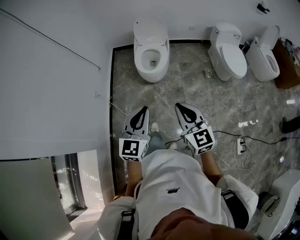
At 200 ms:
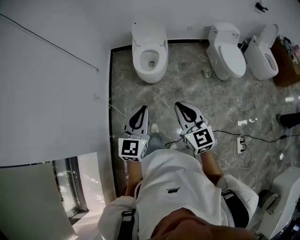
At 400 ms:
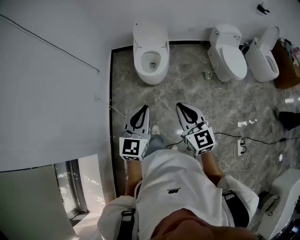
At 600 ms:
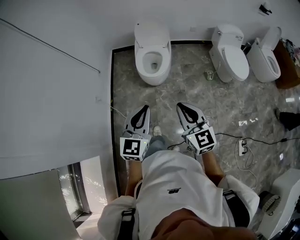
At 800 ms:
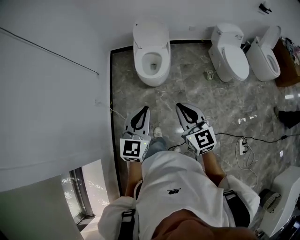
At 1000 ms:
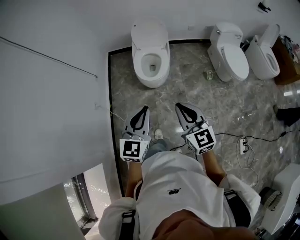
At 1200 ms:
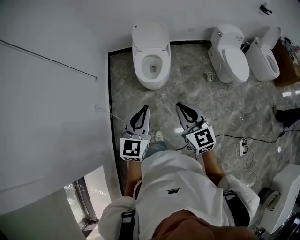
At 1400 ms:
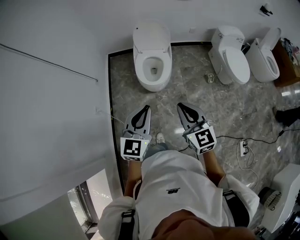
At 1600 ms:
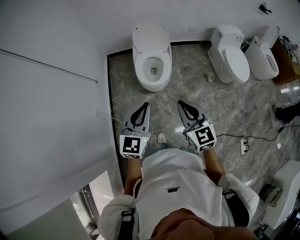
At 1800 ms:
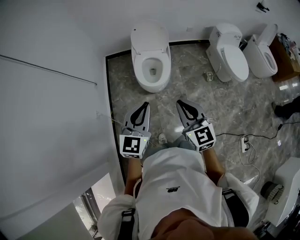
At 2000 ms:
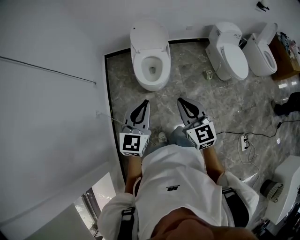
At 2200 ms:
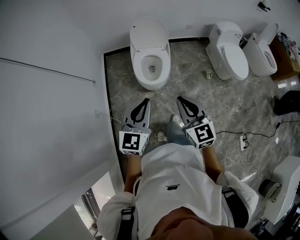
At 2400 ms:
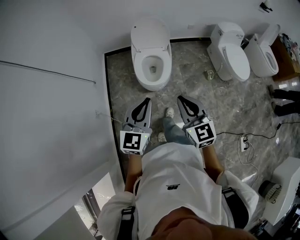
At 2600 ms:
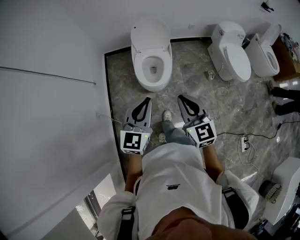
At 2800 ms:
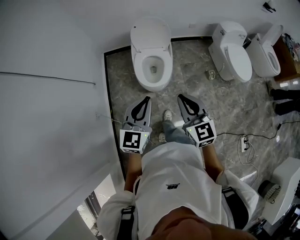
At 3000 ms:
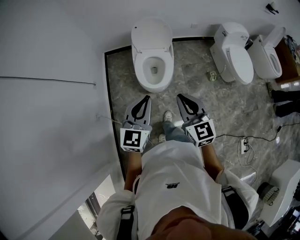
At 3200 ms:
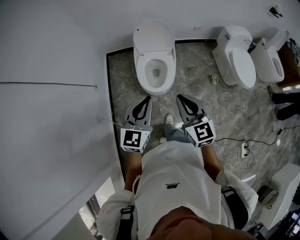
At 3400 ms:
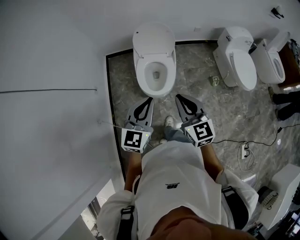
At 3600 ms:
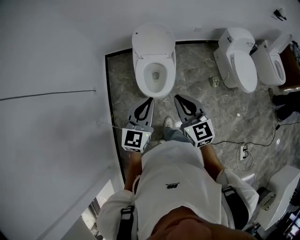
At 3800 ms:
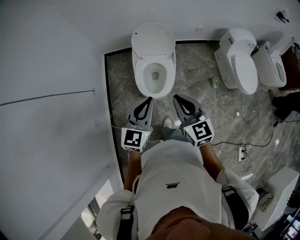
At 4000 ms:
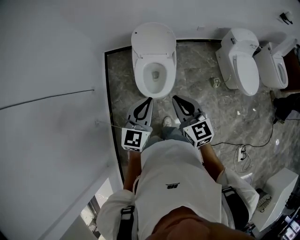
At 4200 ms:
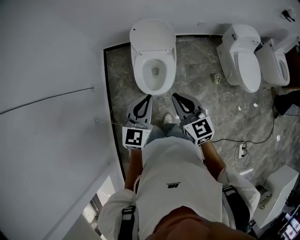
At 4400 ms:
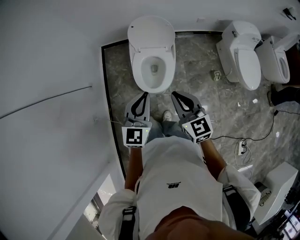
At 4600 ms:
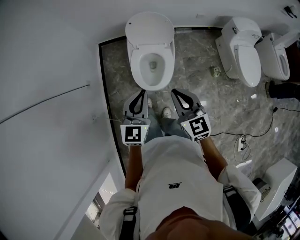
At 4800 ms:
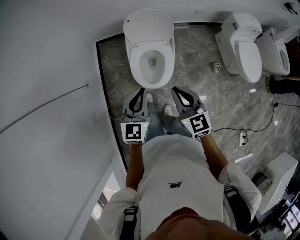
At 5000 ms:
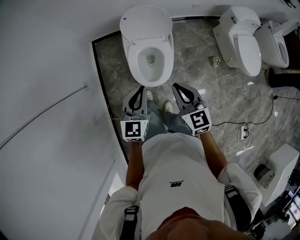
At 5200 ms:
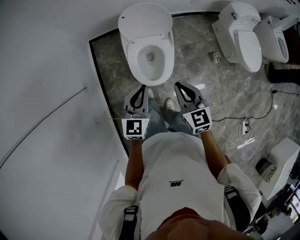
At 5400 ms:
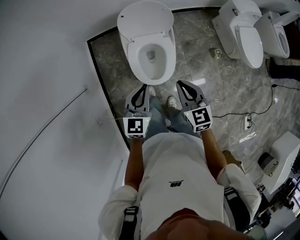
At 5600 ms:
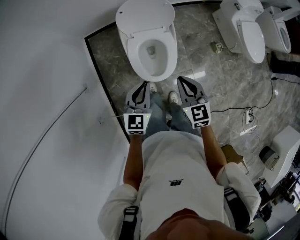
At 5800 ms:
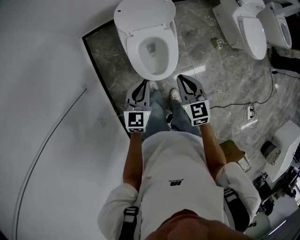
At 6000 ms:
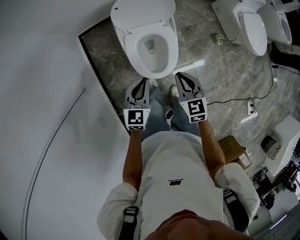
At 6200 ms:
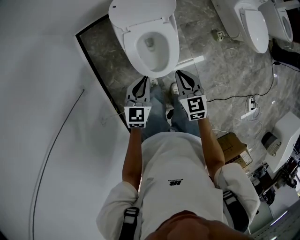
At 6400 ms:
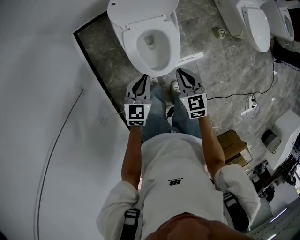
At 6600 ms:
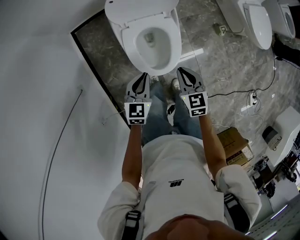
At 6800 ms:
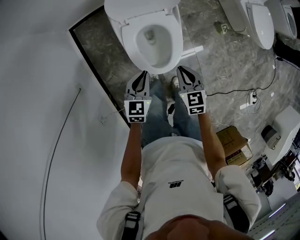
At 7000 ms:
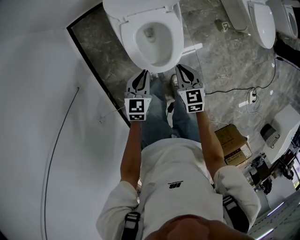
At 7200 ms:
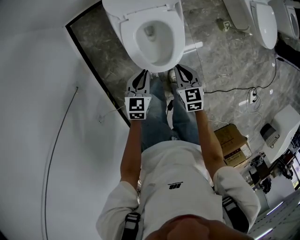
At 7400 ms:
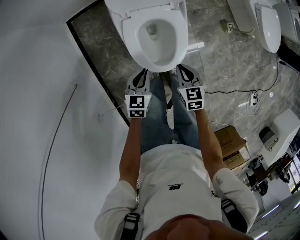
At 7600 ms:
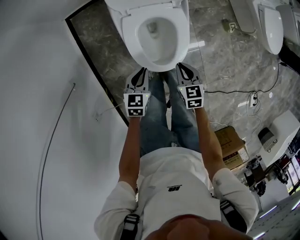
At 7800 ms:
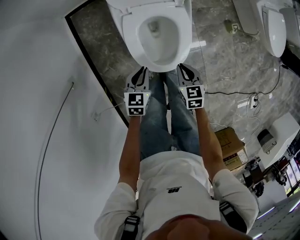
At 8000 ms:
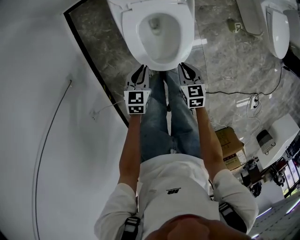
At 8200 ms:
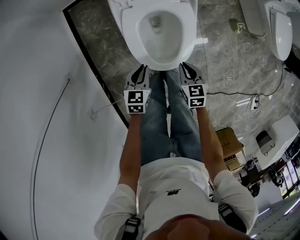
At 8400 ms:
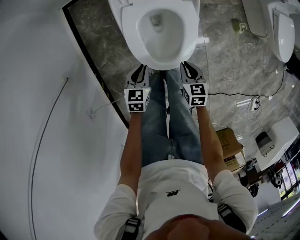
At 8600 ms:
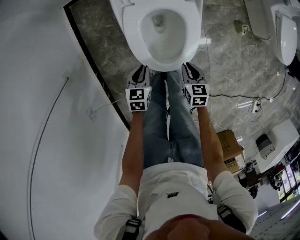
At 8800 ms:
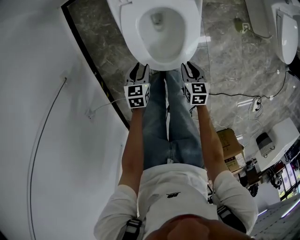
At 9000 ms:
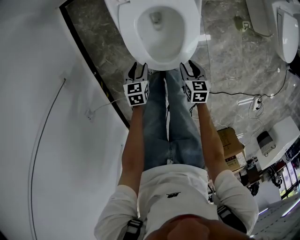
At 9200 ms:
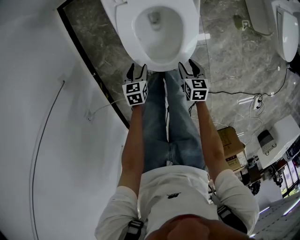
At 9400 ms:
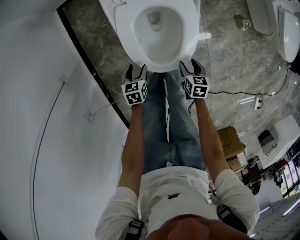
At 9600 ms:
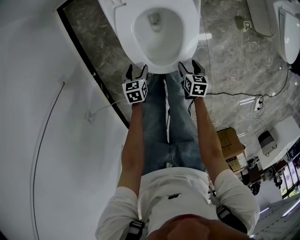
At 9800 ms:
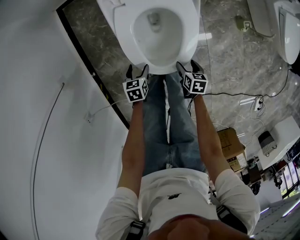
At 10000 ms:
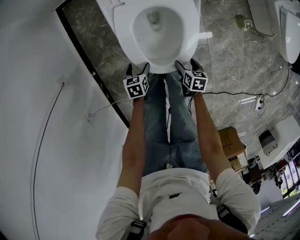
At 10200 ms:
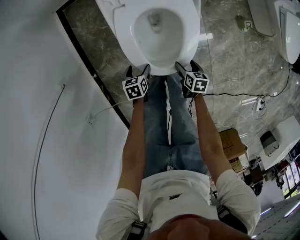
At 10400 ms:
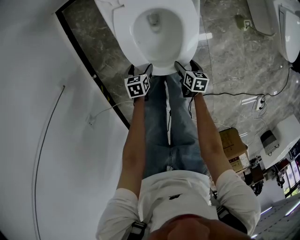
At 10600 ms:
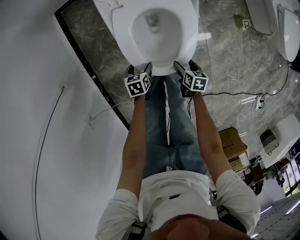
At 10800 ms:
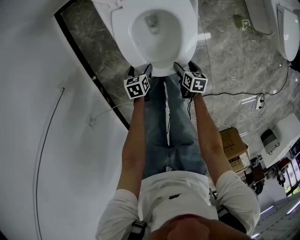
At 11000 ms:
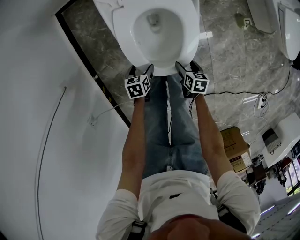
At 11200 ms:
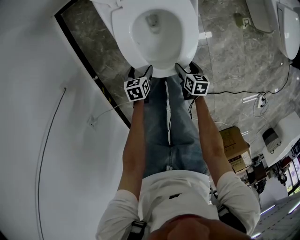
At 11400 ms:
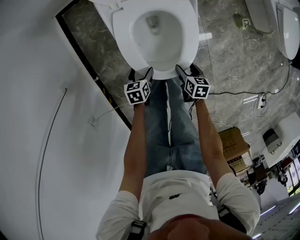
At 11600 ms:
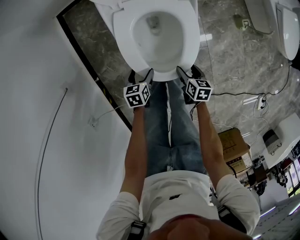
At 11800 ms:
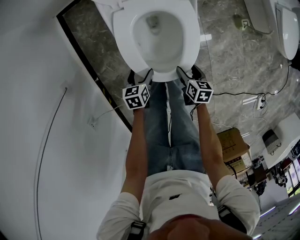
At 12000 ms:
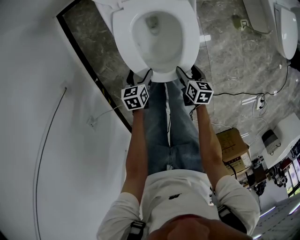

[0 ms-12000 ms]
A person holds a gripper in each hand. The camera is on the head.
0 ms to 1600 ms: The two grippers go some 20 cm forward and to the left.
1600 ms to 3000 ms: The grippers both shift forward by approximately 10 cm.
3000 ms to 4400 ms: Both grippers move forward, about 15 cm.
4400 ms to 6000 ms: Both grippers move downward and forward, some 20 cm. The left gripper turns by roughly 20 degrees, while the right gripper rotates roughly 20 degrees.
6000 ms to 7600 ms: The grippers both shift downward by approximately 20 cm.
7600 ms to 9000 ms: The two grippers go some 15 cm downward. The right gripper opens up; the left gripper opens its fingers.
9000 ms to 10400 ms: Both grippers travel together downward, approximately 10 cm. The left gripper opens; the right gripper turns by approximately 20 degrees, and opens up.
10400 ms to 12000 ms: The two grippers go about 10 cm upward.

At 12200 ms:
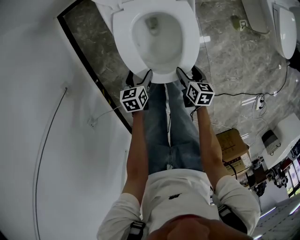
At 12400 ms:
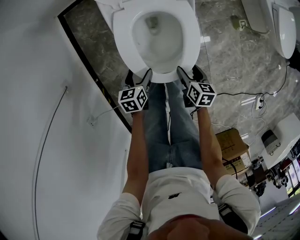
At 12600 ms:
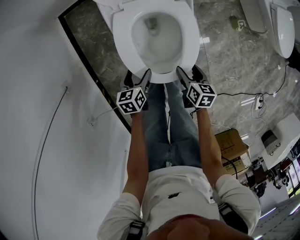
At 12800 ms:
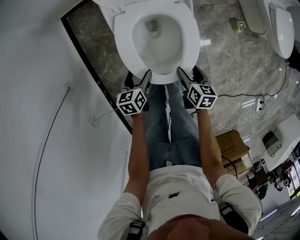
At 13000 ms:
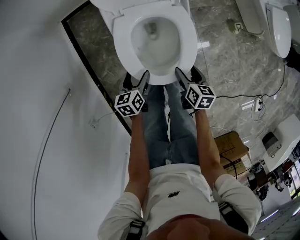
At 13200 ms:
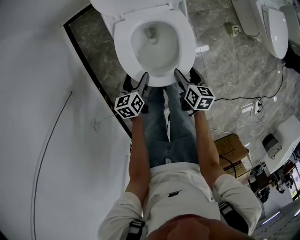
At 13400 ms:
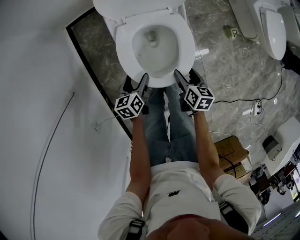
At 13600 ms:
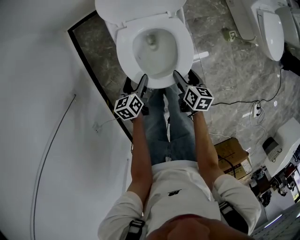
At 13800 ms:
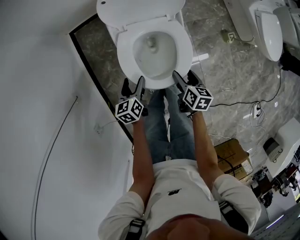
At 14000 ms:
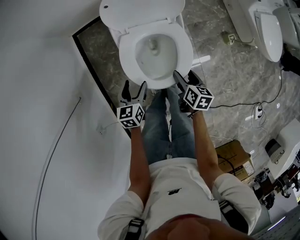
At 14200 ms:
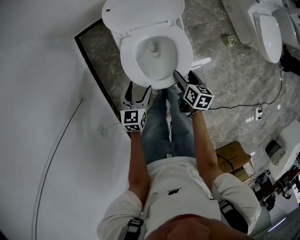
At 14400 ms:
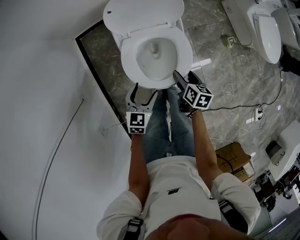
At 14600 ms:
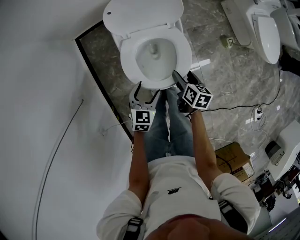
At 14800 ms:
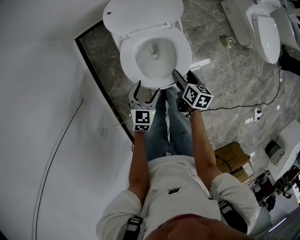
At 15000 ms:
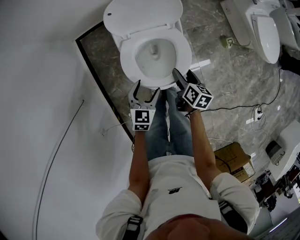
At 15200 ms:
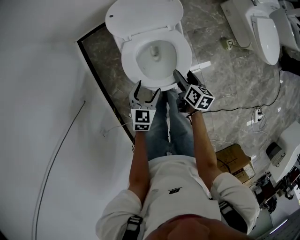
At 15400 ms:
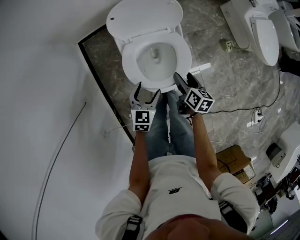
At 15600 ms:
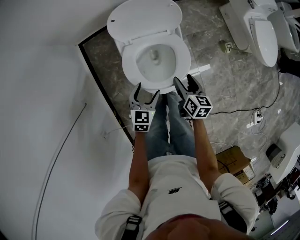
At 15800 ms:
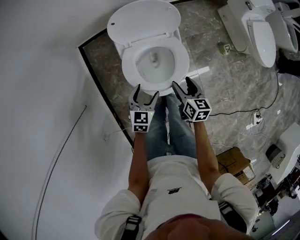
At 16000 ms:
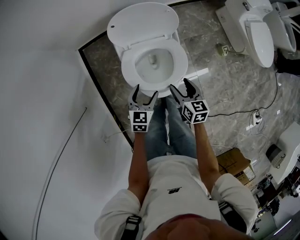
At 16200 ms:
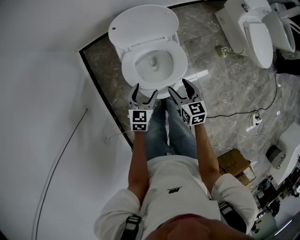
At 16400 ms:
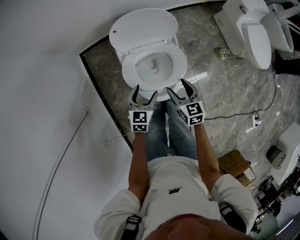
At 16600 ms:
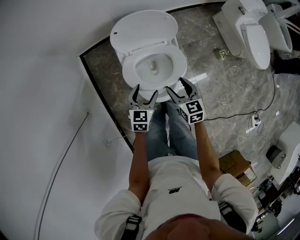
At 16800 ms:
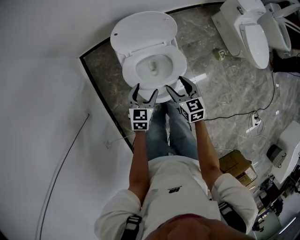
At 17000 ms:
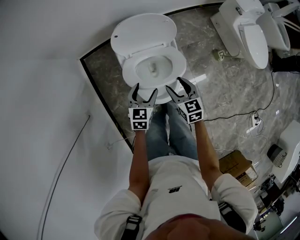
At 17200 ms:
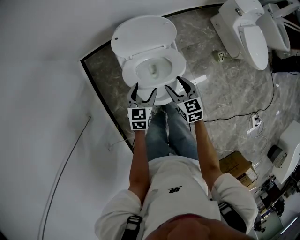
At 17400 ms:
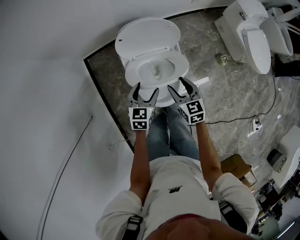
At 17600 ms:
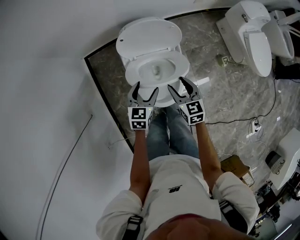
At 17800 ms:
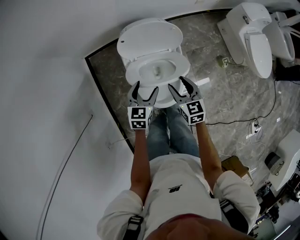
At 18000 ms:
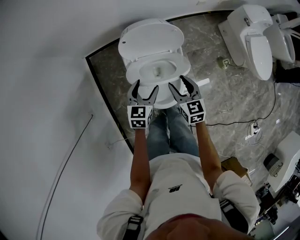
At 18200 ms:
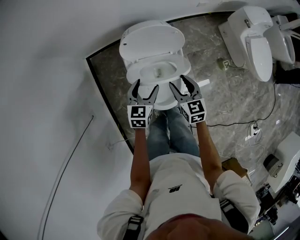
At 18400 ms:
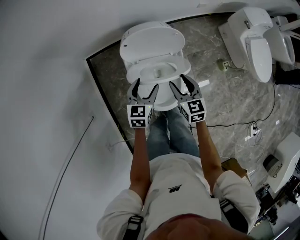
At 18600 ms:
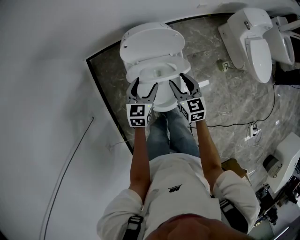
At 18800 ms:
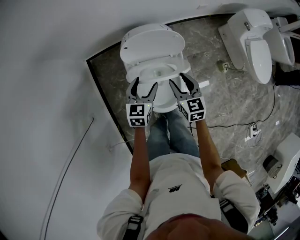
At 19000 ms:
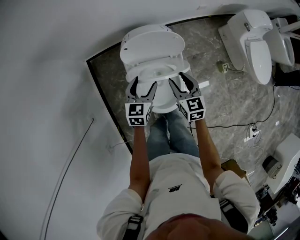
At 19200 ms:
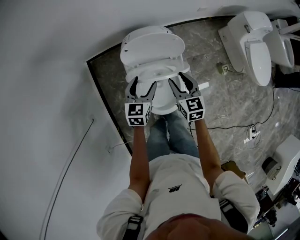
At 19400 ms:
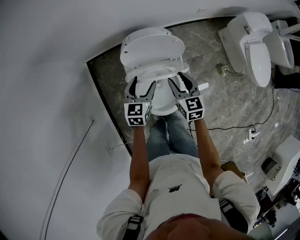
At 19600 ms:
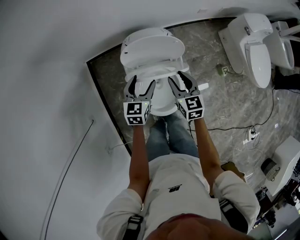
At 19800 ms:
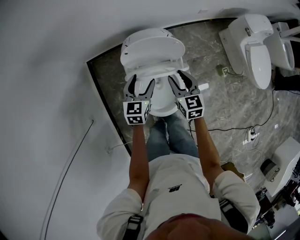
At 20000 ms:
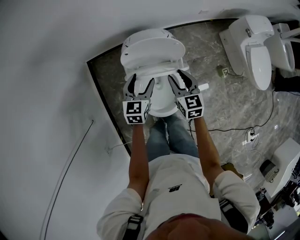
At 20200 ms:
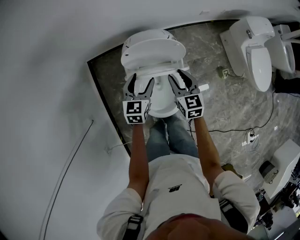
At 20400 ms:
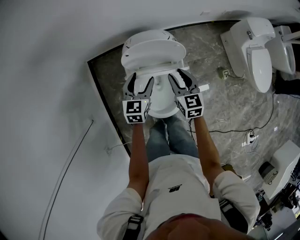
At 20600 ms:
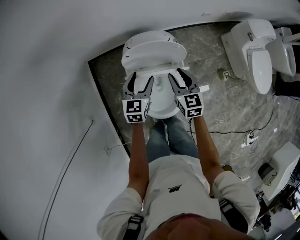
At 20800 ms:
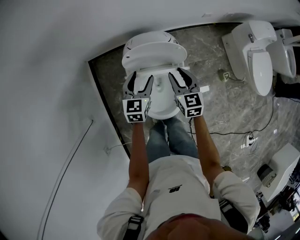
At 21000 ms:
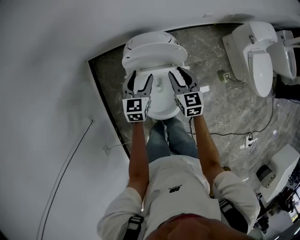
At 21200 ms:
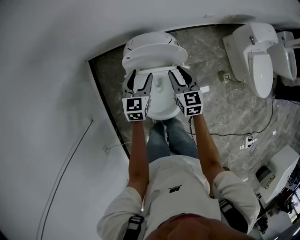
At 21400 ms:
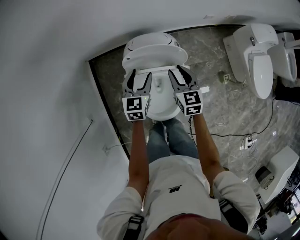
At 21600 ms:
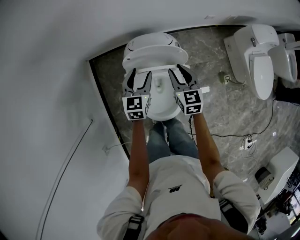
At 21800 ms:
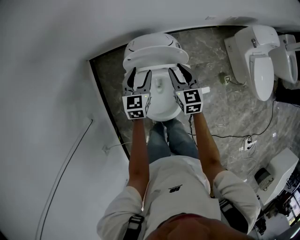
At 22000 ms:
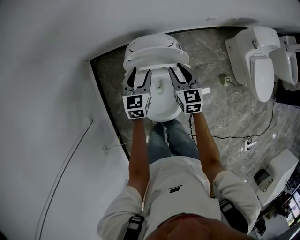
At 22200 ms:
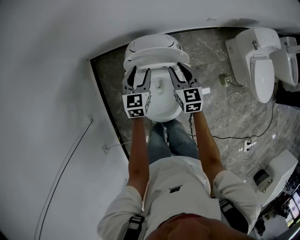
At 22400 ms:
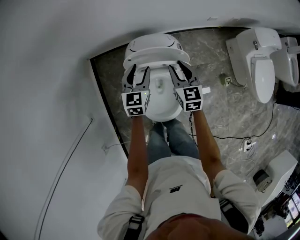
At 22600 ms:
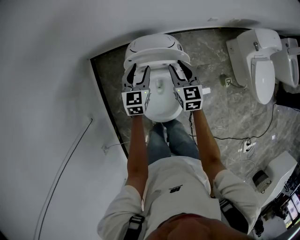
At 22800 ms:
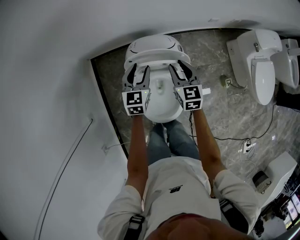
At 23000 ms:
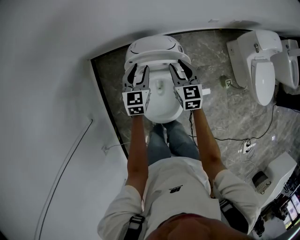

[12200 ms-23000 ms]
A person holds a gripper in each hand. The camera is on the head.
12200 ms to 13800 ms: Both grippers travel together upward and forward, roughly 15 cm.
13800 ms to 15200 ms: The left gripper is displaced upward and to the right by some 10 cm, and swivels about 40 degrees. The right gripper shifts about 5 cm upward.
15200 ms to 16800 ms: The right gripper goes roughly 5 cm upward, and rotates approximately 40 degrees. Meanwhile the left gripper moves roughly 5 cm.
16800 ms to 18400 ms: Both grippers move forward, some 10 cm.
18400 ms to 20000 ms: The grippers both shift forward by roughly 5 cm.
20000 ms to 21400 ms: Both grippers move forward, approximately 5 cm.
21400 ms to 23000 ms: The right gripper moves forward, some 5 cm.

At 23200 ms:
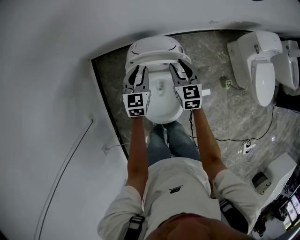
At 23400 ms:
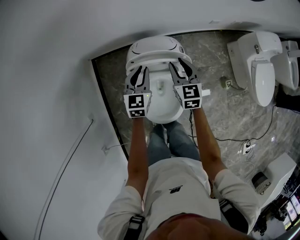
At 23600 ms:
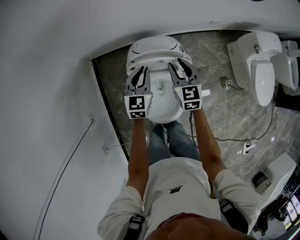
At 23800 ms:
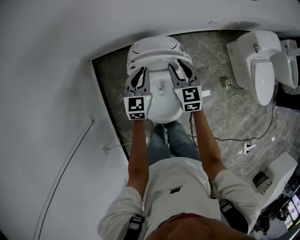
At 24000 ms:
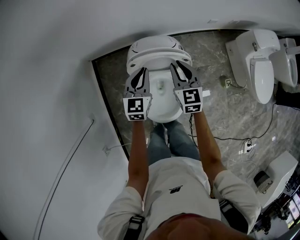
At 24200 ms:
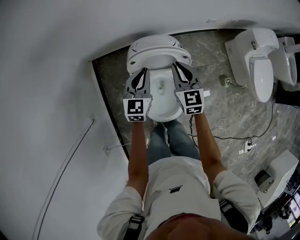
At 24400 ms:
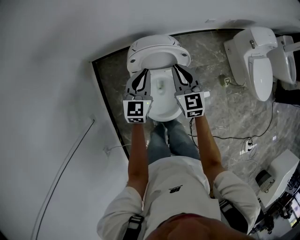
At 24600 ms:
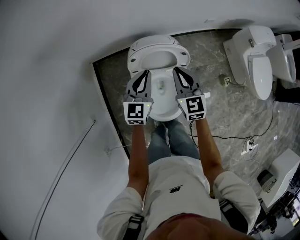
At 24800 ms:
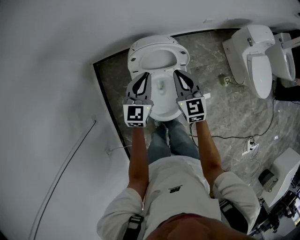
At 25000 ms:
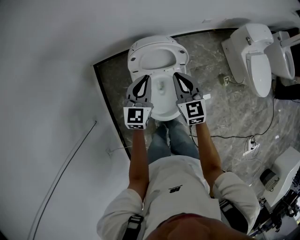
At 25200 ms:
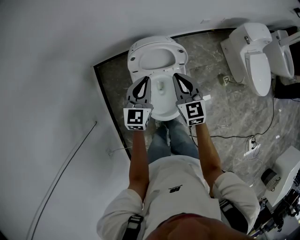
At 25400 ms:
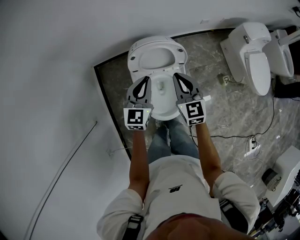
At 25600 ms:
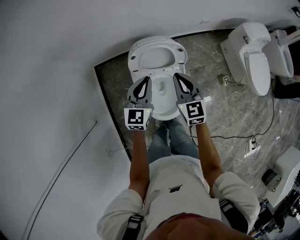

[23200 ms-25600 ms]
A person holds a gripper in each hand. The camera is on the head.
23200 ms to 24400 ms: The right gripper travels upward and backward by roughly 10 cm, and closes. The left gripper travels upward by roughly 5 cm.
24400 ms to 25600 ms: The two grippers go approximately 5 cm backward.
